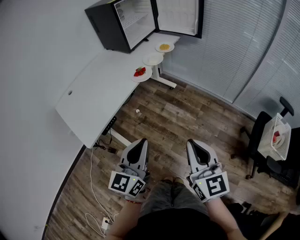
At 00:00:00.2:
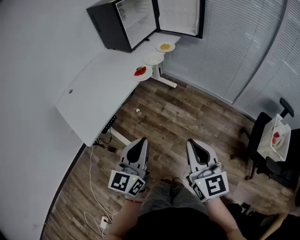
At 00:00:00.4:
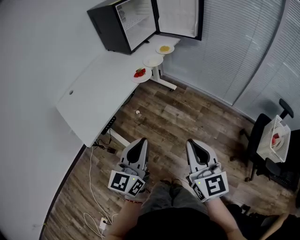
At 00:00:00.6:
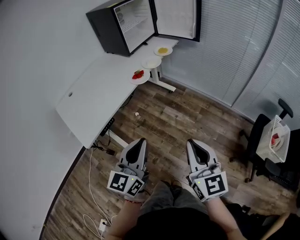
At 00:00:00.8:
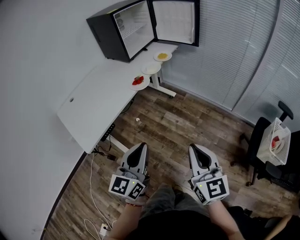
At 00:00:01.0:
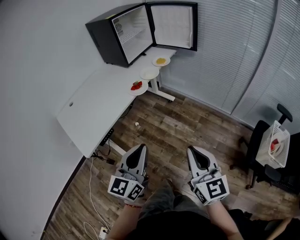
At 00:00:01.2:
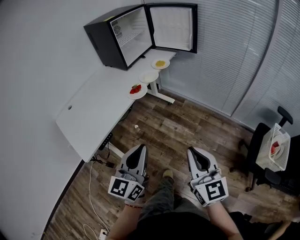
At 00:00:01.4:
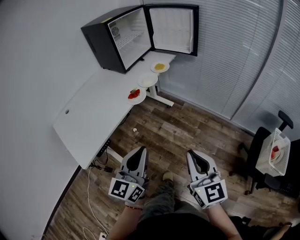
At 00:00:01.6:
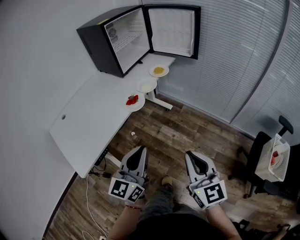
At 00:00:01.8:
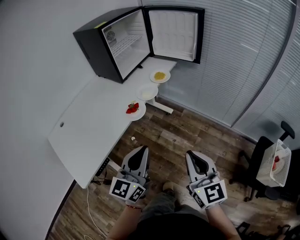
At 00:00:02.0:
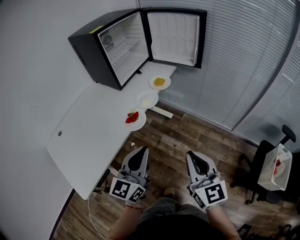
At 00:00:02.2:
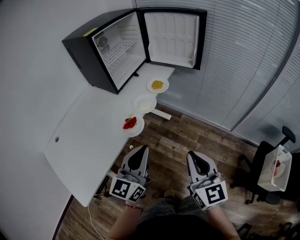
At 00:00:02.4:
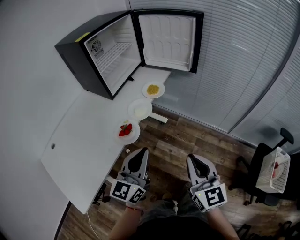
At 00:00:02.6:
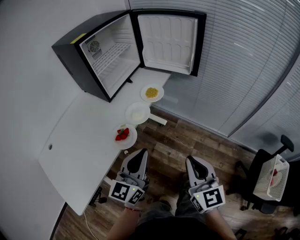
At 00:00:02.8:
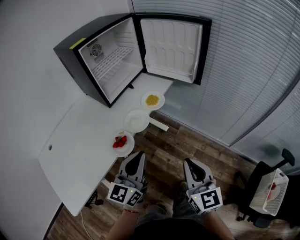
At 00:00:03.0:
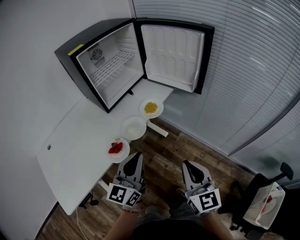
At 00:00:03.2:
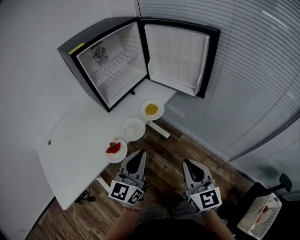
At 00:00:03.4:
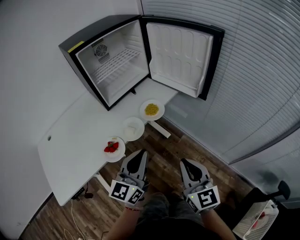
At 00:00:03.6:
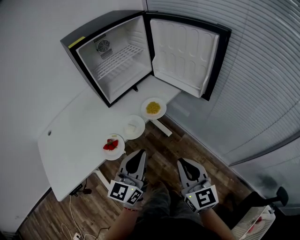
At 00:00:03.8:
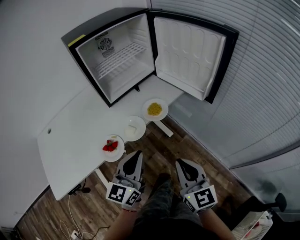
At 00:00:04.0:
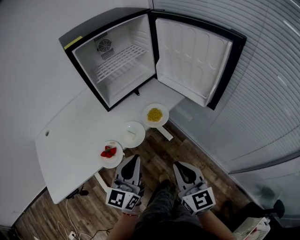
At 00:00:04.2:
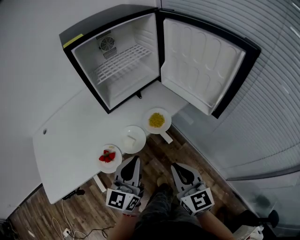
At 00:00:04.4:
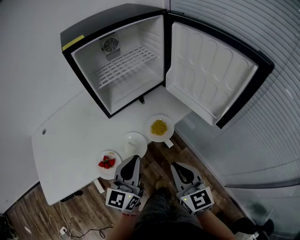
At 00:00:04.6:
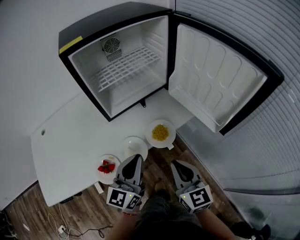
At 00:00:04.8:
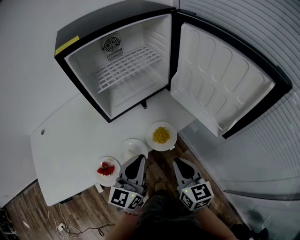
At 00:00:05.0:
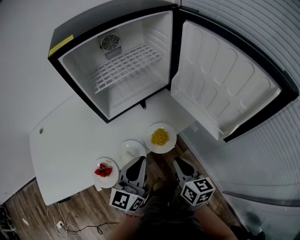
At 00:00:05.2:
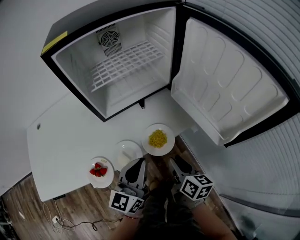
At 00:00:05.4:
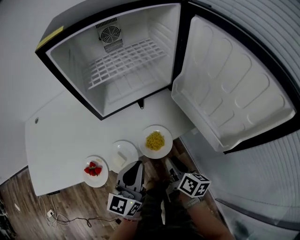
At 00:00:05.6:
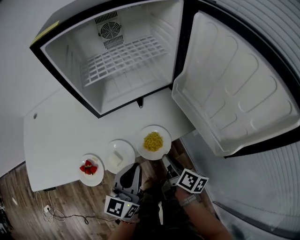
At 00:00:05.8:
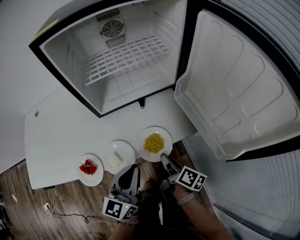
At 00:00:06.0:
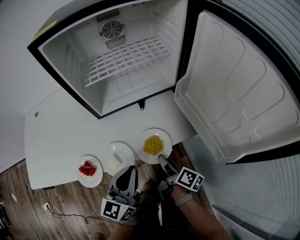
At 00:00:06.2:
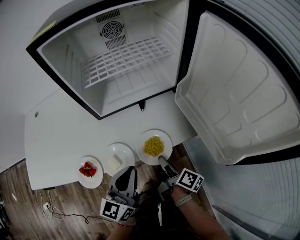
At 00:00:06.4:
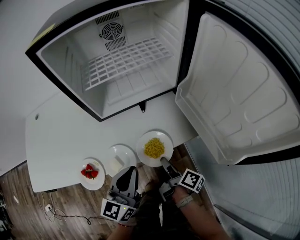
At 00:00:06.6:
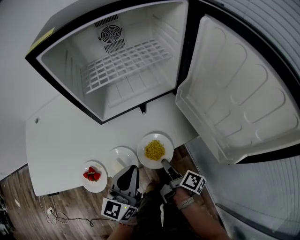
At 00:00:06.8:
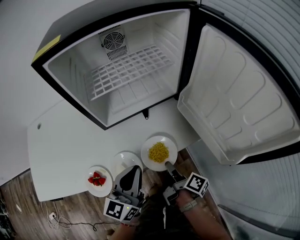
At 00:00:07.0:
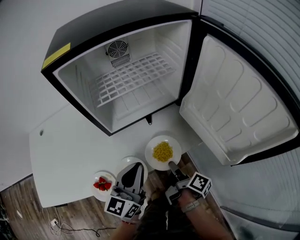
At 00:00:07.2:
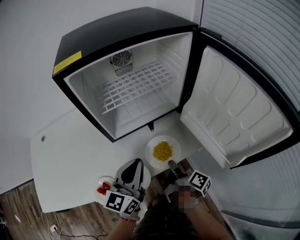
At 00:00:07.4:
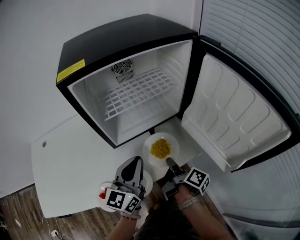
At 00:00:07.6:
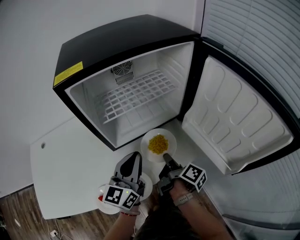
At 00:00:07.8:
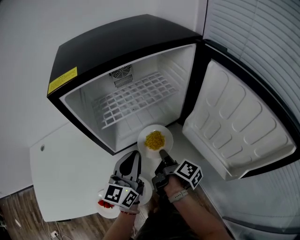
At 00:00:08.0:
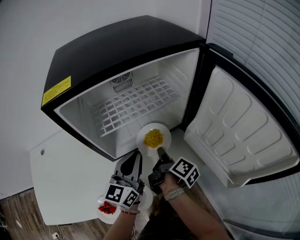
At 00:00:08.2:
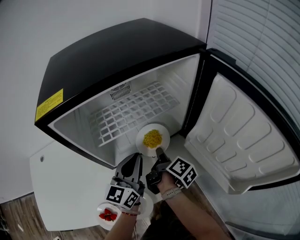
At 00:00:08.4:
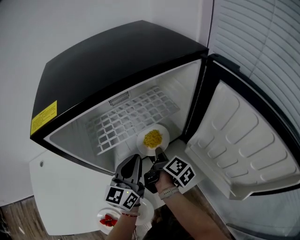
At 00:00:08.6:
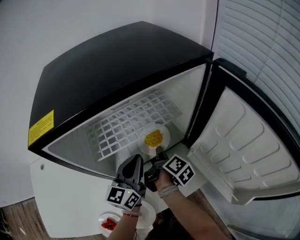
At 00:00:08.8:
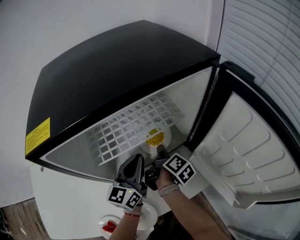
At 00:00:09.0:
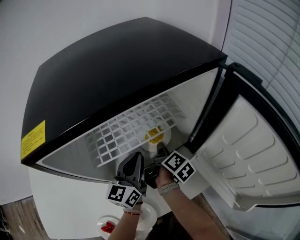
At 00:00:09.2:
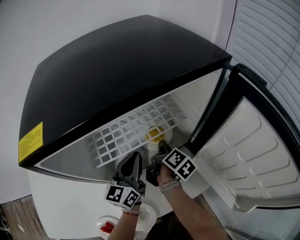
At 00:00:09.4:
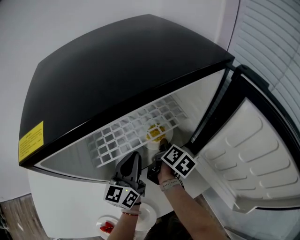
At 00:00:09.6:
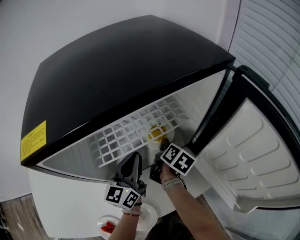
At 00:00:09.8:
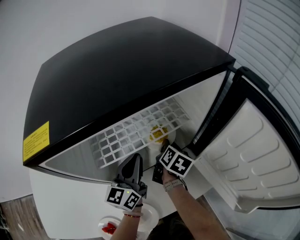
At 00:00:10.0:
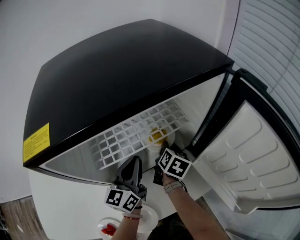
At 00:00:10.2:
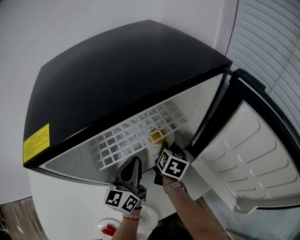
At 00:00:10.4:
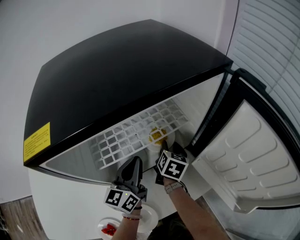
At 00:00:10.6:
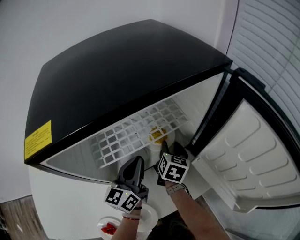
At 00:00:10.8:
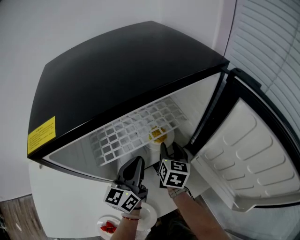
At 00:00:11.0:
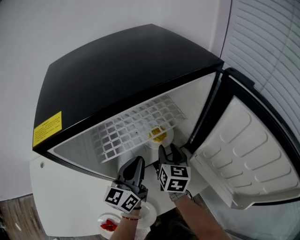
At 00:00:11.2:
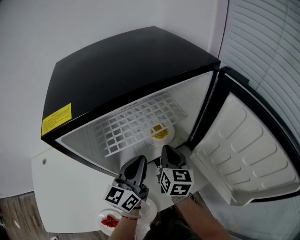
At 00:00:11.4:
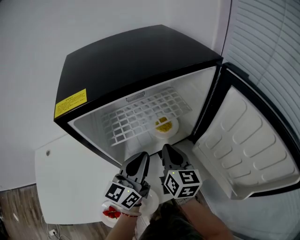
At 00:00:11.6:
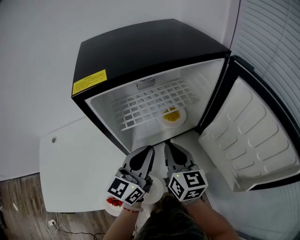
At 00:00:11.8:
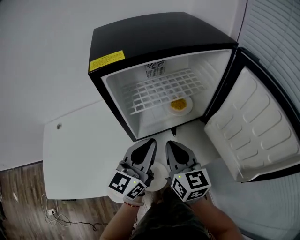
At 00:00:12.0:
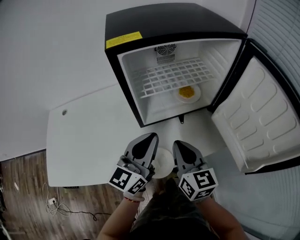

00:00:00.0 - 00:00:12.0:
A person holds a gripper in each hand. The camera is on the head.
00:00:00.0 - 00:00:01.6: Both grippers move forward, roughly 15 cm.
00:00:01.6 - 00:00:03.0: Both grippers travel together forward, roughly 30 cm.
00:00:03.0 - 00:00:04.4: The grippers both shift forward by roughly 20 cm. The right gripper turns by some 20 degrees.
00:00:04.4 - 00:00:06.0: The right gripper goes about 25 cm downward and forward, twists roughly 70 degrees clockwise, seen from behind, and opens up, while the left gripper moves forward and downward, some 10 cm.
00:00:06.0 - 00:00:07.6: The grippers both shift forward and upward by some 15 cm. The right gripper closes.
00:00:07.6 - 00:00:09.0: Both grippers move forward, approximately 20 cm.
00:00:09.0 - 00:00:10.4: The right gripper rolls counterclockwise, seen from behind, by some 40 degrees, and opens its fingers.
00:00:10.4 - 00:00:12.0: Both grippers travel together backward and upward, approximately 25 cm. The right gripper swivels some 40 degrees, and closes.

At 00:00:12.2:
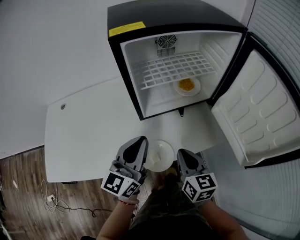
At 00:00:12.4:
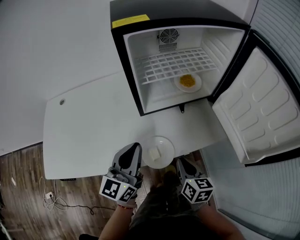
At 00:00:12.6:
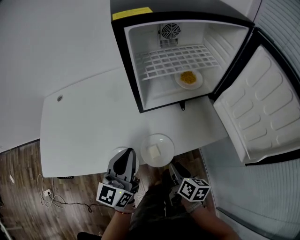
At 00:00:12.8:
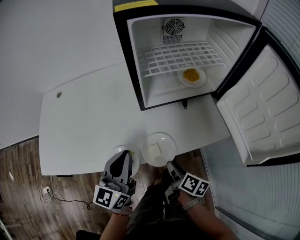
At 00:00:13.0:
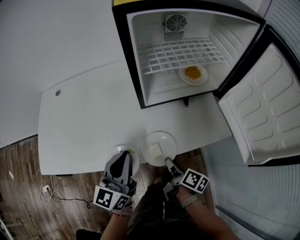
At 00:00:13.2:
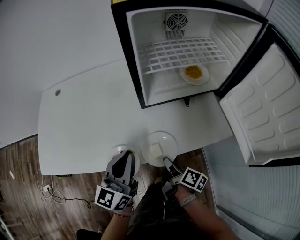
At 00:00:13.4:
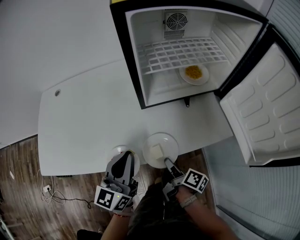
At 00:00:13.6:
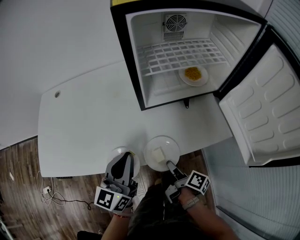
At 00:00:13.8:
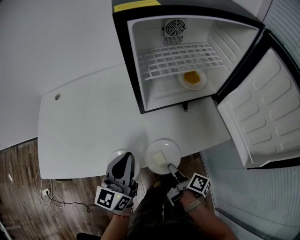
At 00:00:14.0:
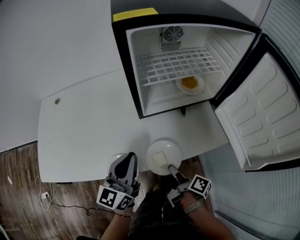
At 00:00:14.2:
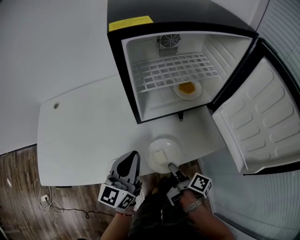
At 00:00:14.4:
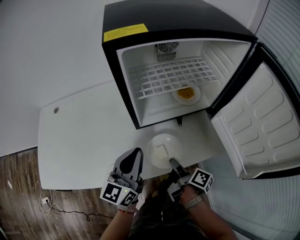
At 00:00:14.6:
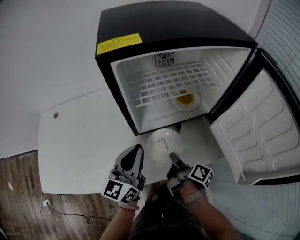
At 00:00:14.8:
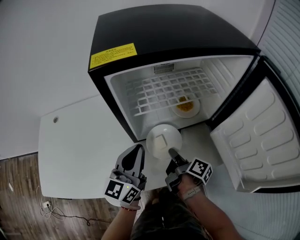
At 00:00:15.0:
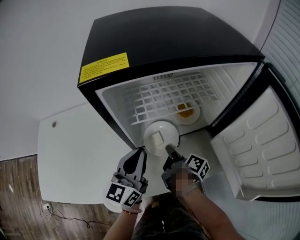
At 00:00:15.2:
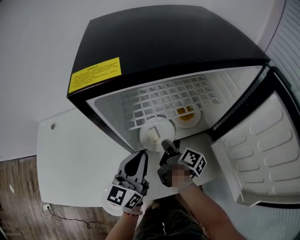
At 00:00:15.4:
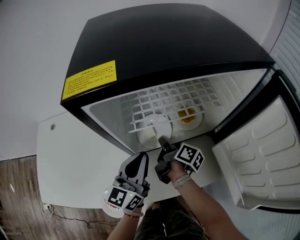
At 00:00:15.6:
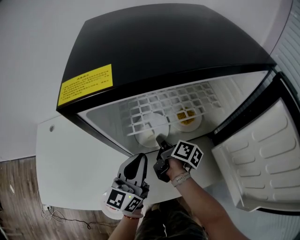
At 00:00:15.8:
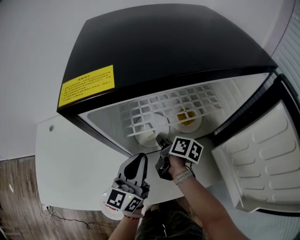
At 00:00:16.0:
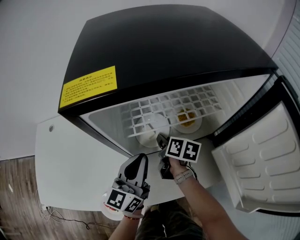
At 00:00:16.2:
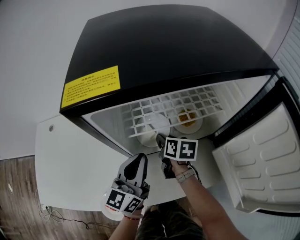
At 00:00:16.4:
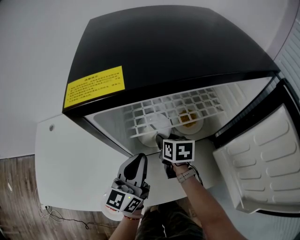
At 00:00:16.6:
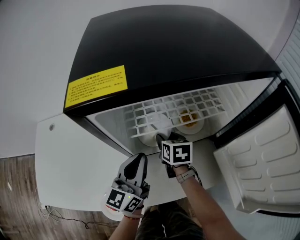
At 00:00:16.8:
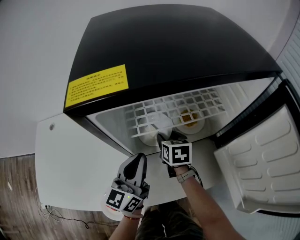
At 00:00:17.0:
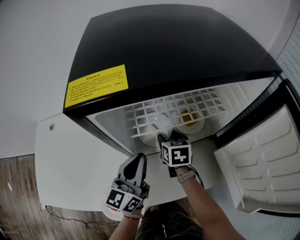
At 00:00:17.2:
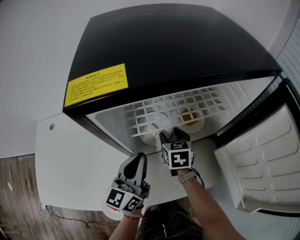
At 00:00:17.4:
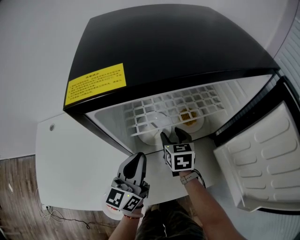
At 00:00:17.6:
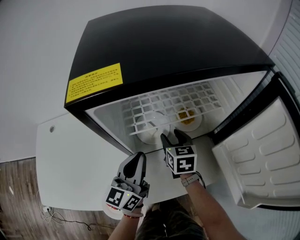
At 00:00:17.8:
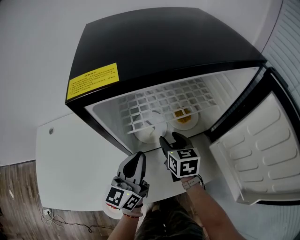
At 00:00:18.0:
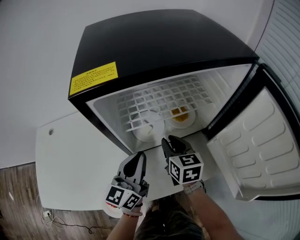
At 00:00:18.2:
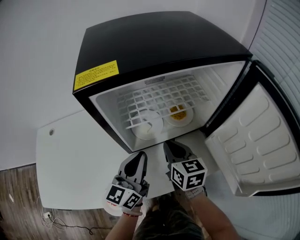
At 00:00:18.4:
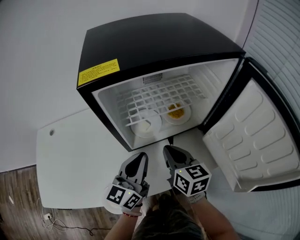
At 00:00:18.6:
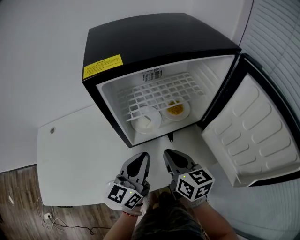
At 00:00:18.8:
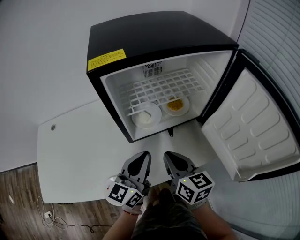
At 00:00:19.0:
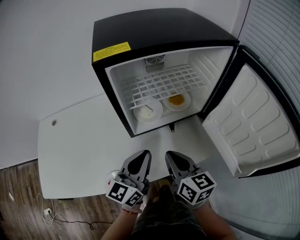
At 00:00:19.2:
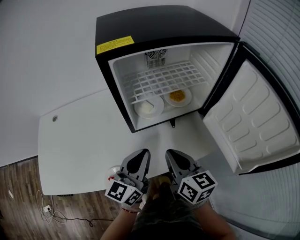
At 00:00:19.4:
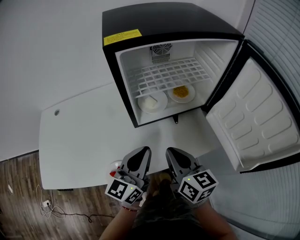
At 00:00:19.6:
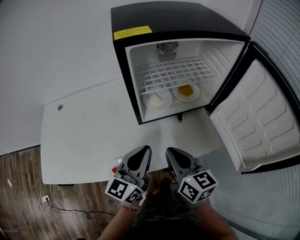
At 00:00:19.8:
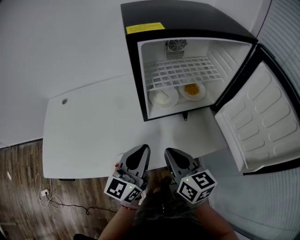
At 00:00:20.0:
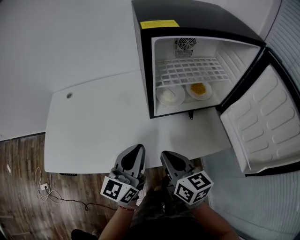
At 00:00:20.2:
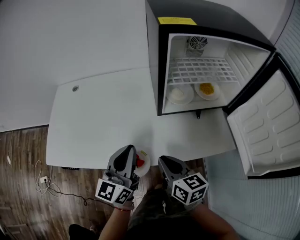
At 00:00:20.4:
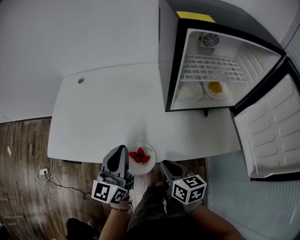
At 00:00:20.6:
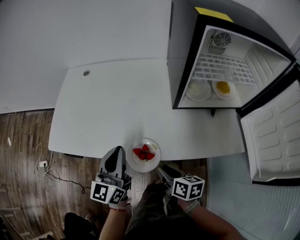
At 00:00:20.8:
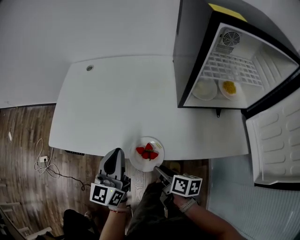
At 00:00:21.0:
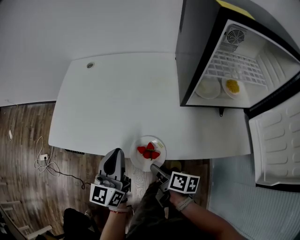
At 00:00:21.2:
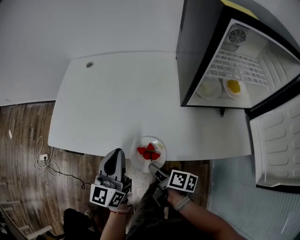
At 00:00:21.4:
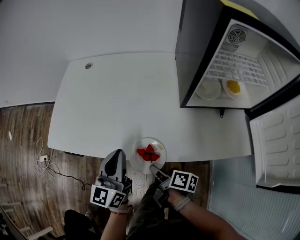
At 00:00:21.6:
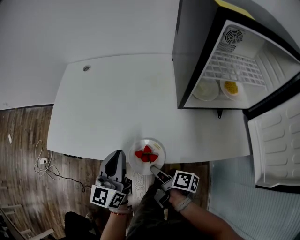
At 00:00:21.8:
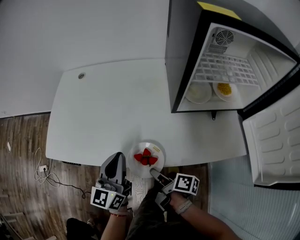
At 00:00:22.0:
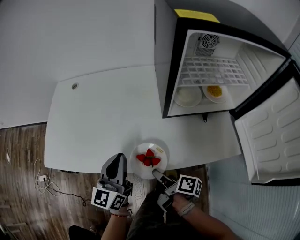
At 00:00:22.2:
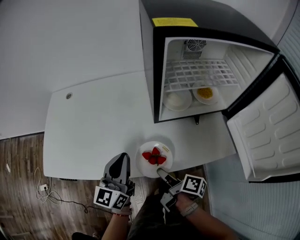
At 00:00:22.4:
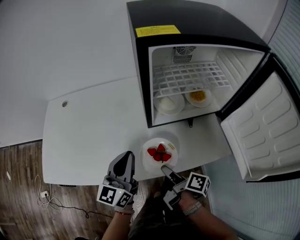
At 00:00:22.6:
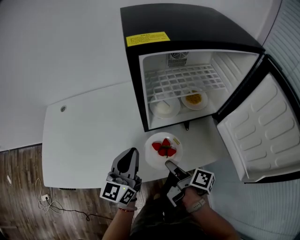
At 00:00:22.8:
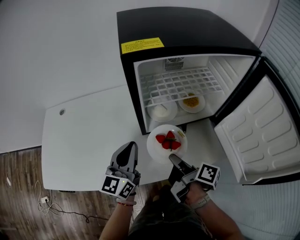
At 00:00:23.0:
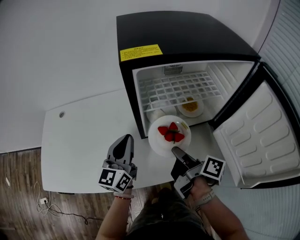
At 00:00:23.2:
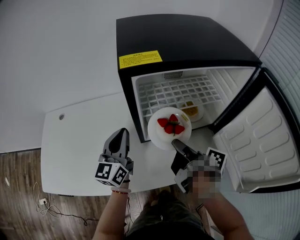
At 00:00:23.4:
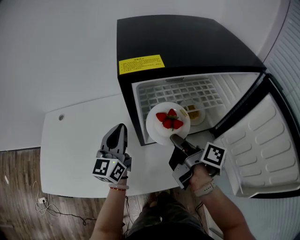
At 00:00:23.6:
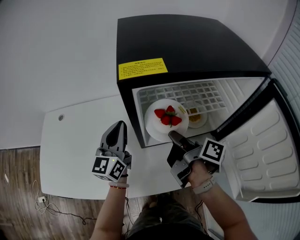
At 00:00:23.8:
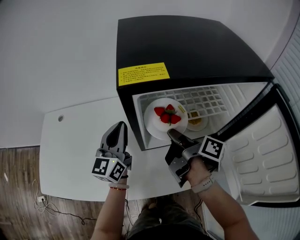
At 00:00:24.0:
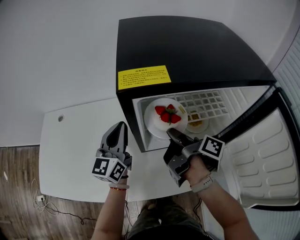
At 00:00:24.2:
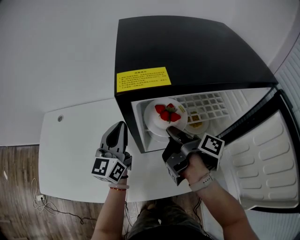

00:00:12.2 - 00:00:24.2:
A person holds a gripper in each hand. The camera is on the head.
00:00:12.2 - 00:00:13.8: The left gripper heads downward and to the left, covering roughly 10 cm, while the right gripper travels downward by some 15 cm, rotates around the line of its fingers by about 70 degrees, clockwise from behind, and opens, then closes once more.
00:00:13.8 - 00:00:15.2: The right gripper heads forward, covering approximately 25 cm, while the left gripper travels forward and to the right by approximately 20 cm.
00:00:15.2 - 00:00:16.6: The right gripper travels forward by some 5 cm, rotates around the line of its fingers by approximately 60 degrees, counterclockwise from behind, and opens up.
00:00:16.6 - 00:00:18.2: The right gripper is displaced backward and upward by roughly 15 cm, and closes up.
00:00:18.2 - 00:00:19.8: The grippers both shift backward by some 15 cm.
00:00:19.8 - 00:00:21.2: The left gripper ends up roughly 25 cm from where it was, and swivels approximately 30 degrees. Meanwhile the right gripper shifts approximately 20 cm downward, twists some 50 degrees clockwise, seen from behind, and opens its fingers.
00:00:21.2 - 00:00:22.6: The right gripper shifts approximately 25 cm to the right and upward, changes its angle by some 30 degrees, and closes. The left gripper is displaced to the right by some 20 cm, and rotates approximately 20 degrees.
00:00:22.6 - 00:00:24.2: The left gripper goes roughly 20 cm forward; the right gripper heads forward and upward, covering approximately 25 cm.
